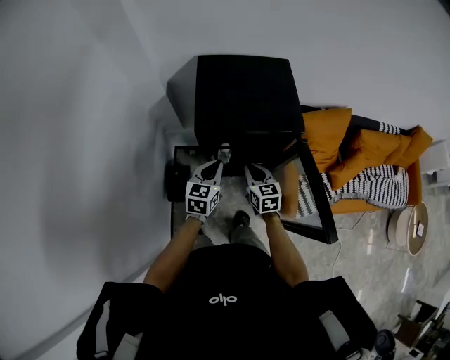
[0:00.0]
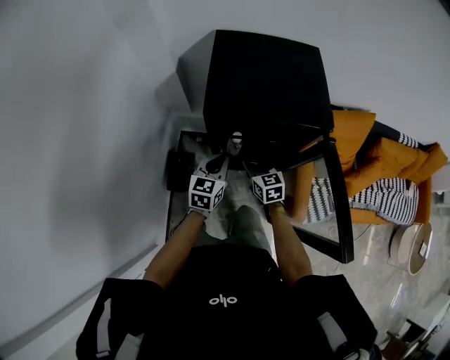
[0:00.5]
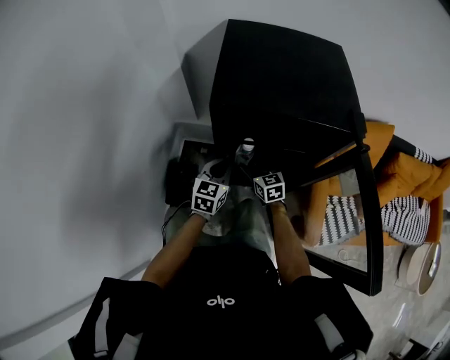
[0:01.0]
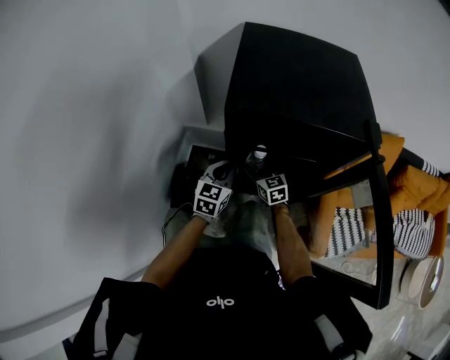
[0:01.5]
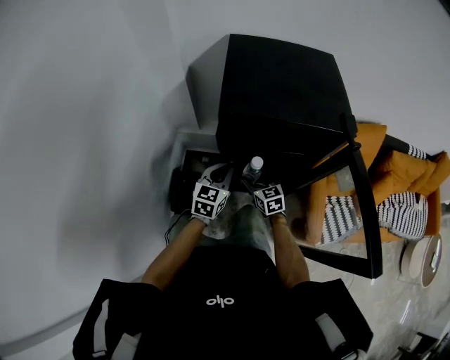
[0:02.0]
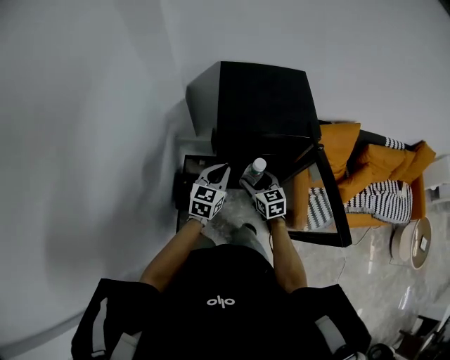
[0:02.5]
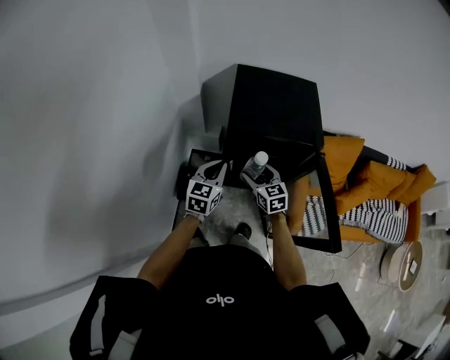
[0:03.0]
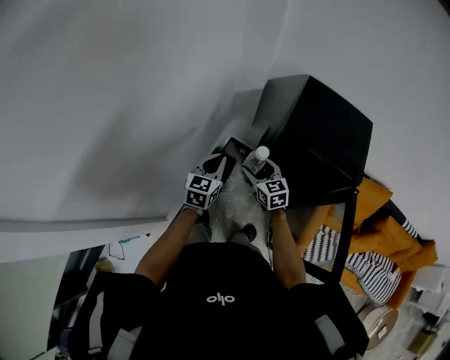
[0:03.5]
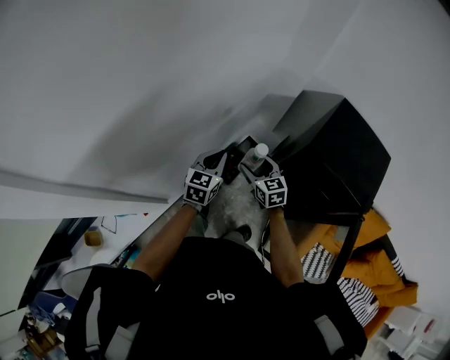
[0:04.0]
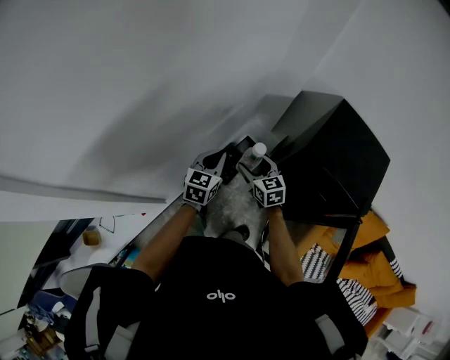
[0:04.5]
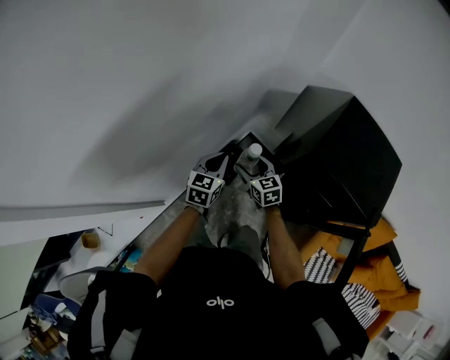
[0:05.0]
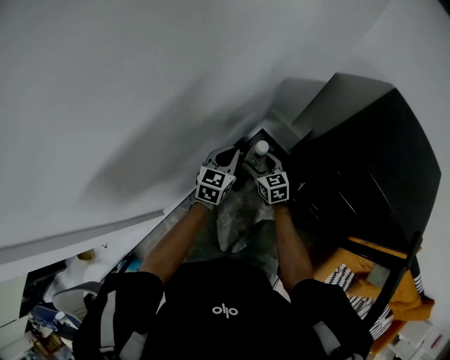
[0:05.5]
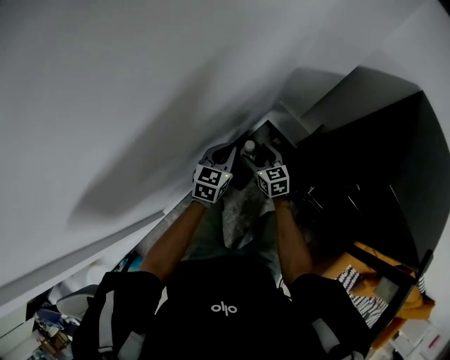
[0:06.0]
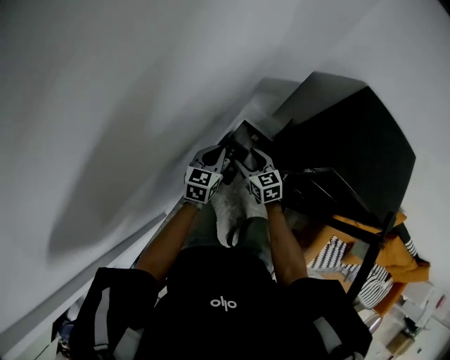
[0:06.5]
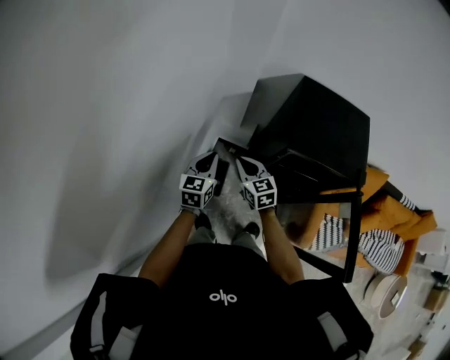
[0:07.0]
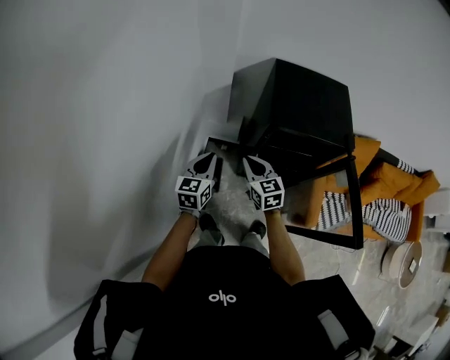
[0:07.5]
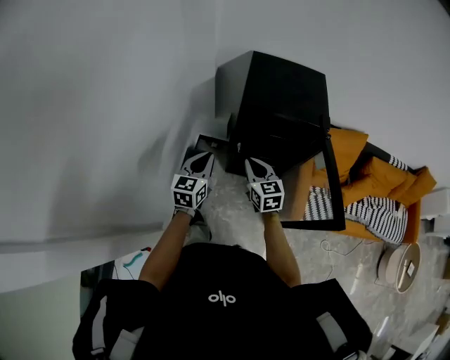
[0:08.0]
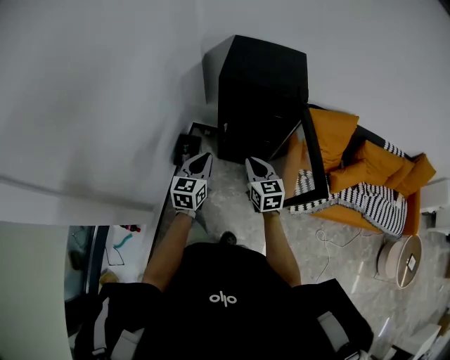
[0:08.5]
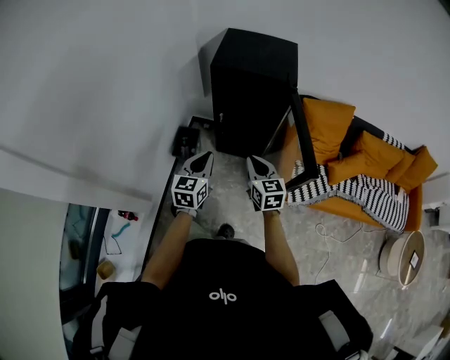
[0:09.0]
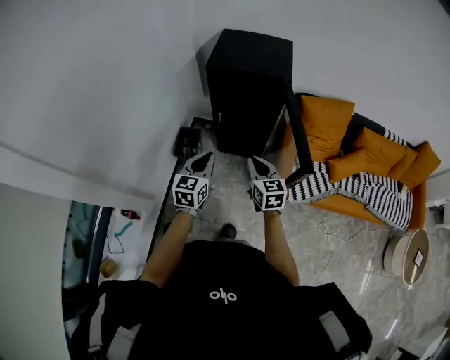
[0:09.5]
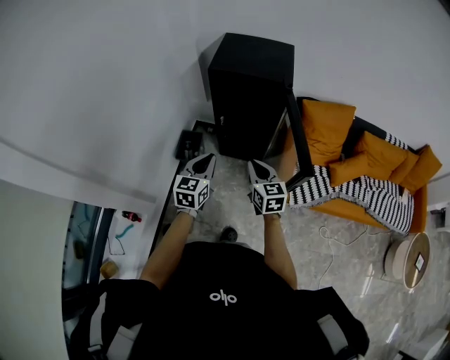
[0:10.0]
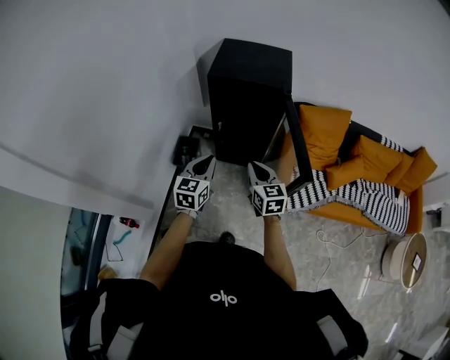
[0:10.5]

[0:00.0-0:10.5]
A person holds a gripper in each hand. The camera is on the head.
0:00.0 to 0:02.0: Both grippers travel together downward, approximately 20 cm. The right gripper opens up.
0:02.0 to 0:04.0: The right gripper changes place by roughly 35 cm, and turns by about 40 degrees. Meanwhile the left gripper shifts by roughly 35 cm, and swivels roughly 40 degrees.
0:04.0 to 0:06.5: The grippers both shift downward and forward by roughly 20 cm.
0:06.5 to 0:08.5: The right gripper ends up about 50 cm from where it was, rotates some 30 degrees, and closes, while the left gripper changes place by some 40 cm.
0:08.5 to 0:10.5: The left gripper heads to the right and backward, covering approximately 10 cm; the right gripper is displaced backward and to the right by some 10 cm.

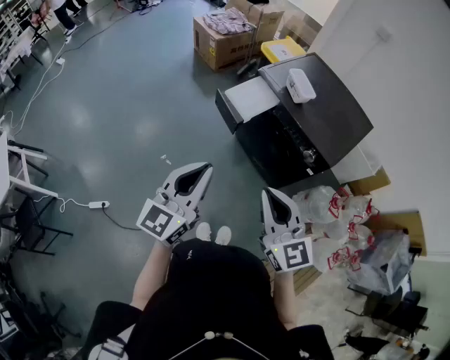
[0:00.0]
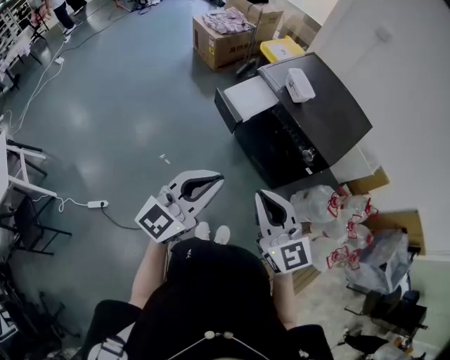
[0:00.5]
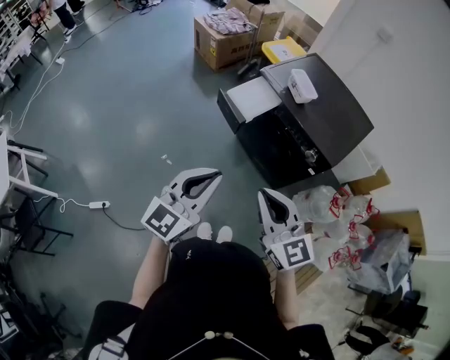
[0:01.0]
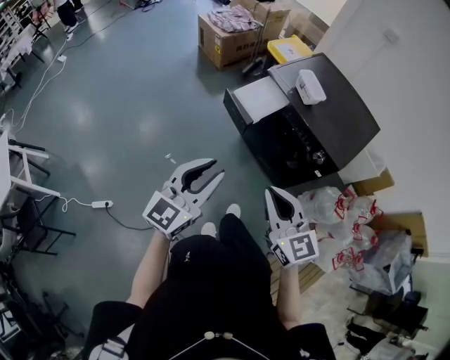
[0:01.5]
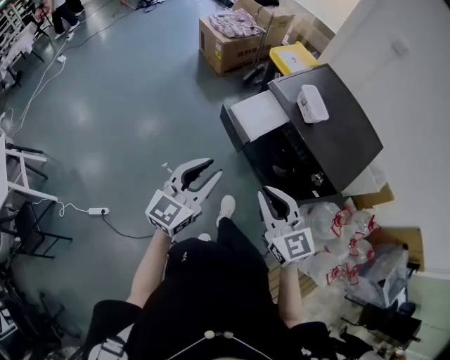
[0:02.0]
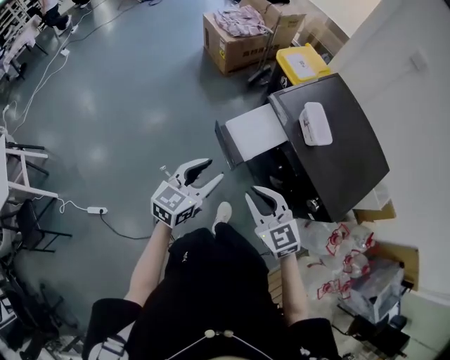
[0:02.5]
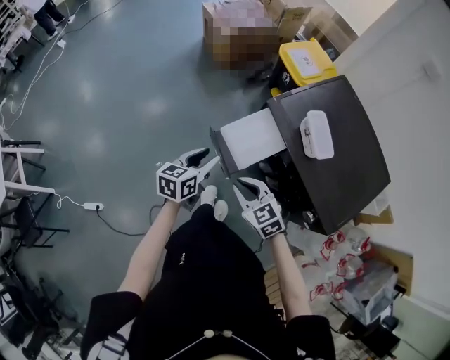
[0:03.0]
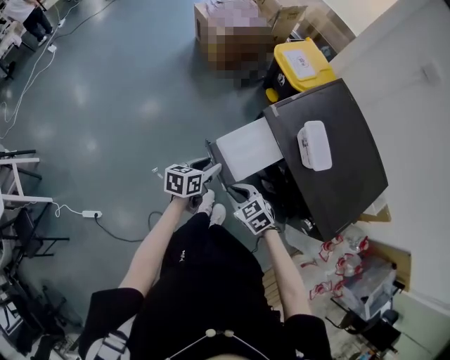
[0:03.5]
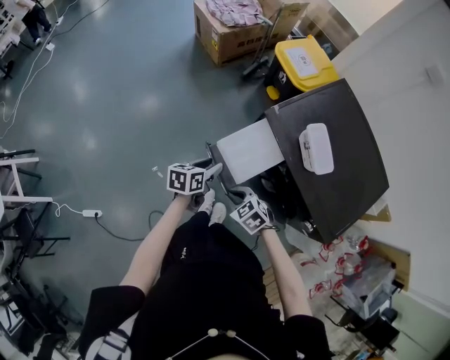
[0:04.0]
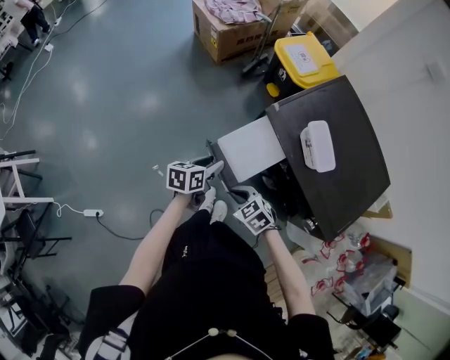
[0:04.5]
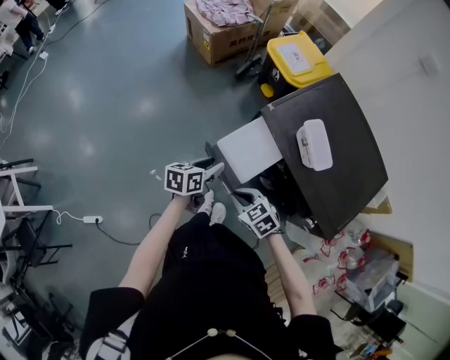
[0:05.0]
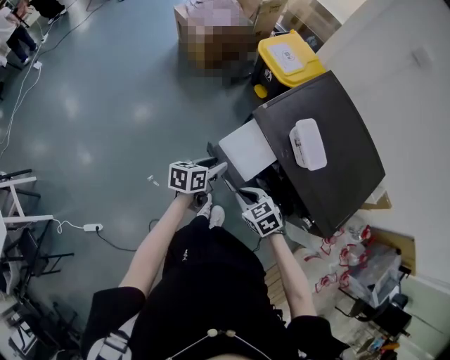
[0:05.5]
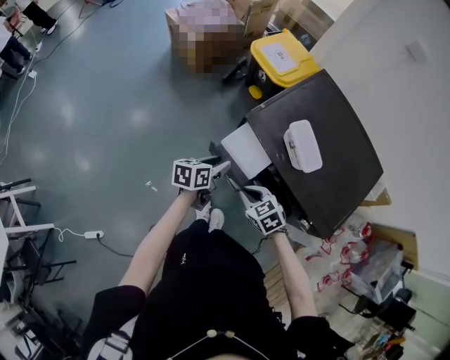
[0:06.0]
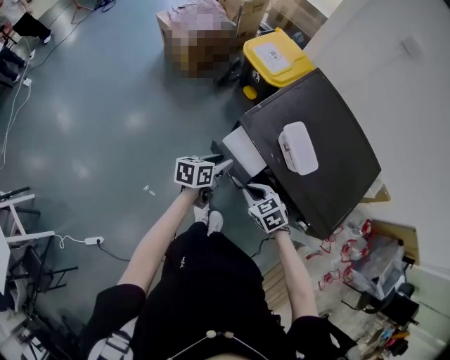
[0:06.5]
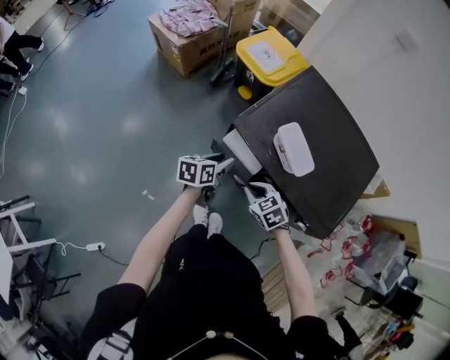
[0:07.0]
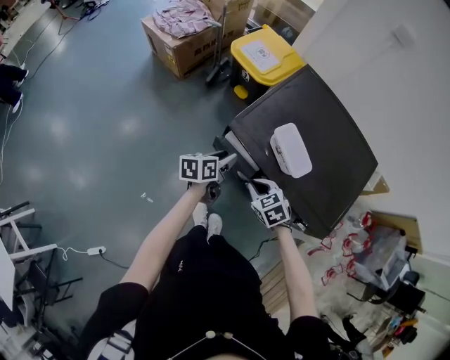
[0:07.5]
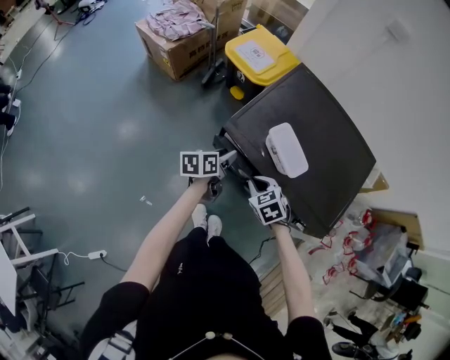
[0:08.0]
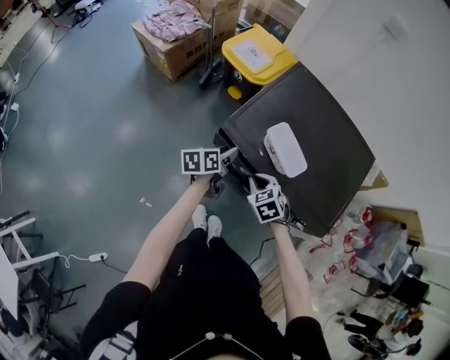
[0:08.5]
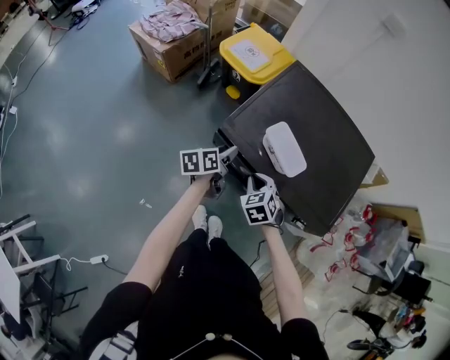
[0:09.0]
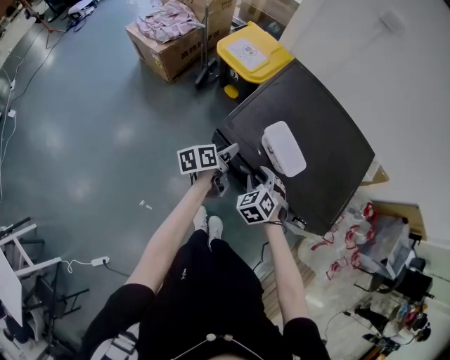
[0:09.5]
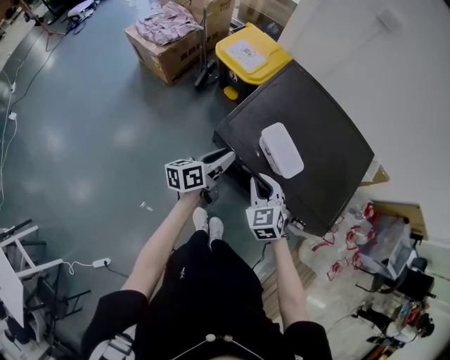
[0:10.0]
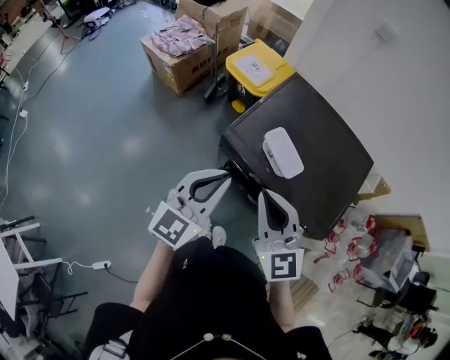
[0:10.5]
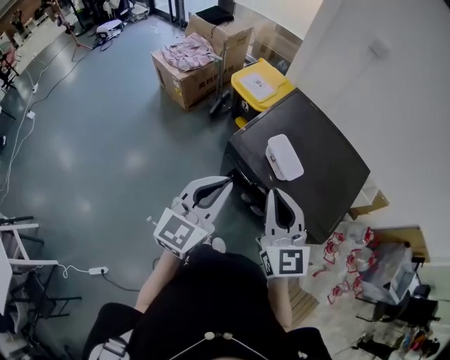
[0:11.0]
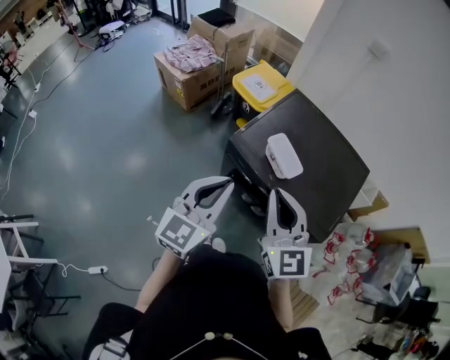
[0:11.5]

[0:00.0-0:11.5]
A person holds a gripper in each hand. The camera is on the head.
0:00.0 to 0:02.0: The two grippers go about 15 cm forward and downward. The left gripper opens.
0:02.0 to 0:04.0: Both grippers move downward and forward, roughly 35 cm. The right gripper tilts its fingers roughly 40 degrees downward; the left gripper tilts its fingers about 30 degrees downward.
0:04.0 to 0:06.0: Both grippers move to the right, some 10 cm.
0:06.0 to 0:07.5: The grippers both shift forward and to the right by about 10 cm.
0:07.5 to 0:09.5: The left gripper moves about 5 cm, while the right gripper travels forward by some 5 cm, changes its angle by some 30 degrees, and opens.
0:09.5 to 0:11.5: The right gripper heads upward, covering about 30 cm, points its fingers roughly 50 degrees further upward, and closes up, while the left gripper moves upward and backward, approximately 35 cm, rotates around the line of its fingers by about 60 degrees, clockwise from behind, and closes its fingers.

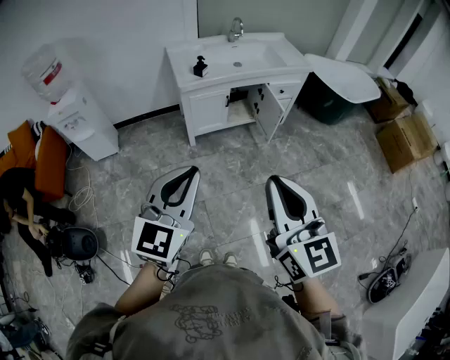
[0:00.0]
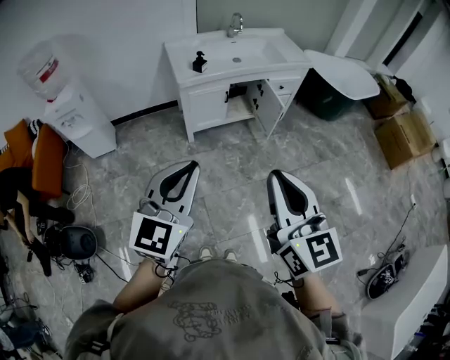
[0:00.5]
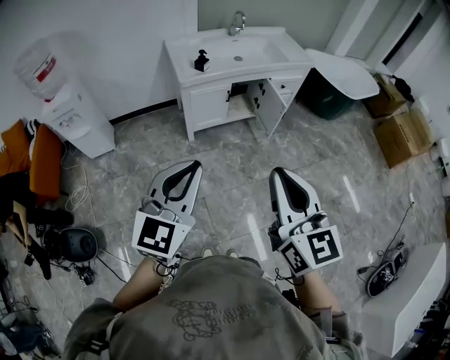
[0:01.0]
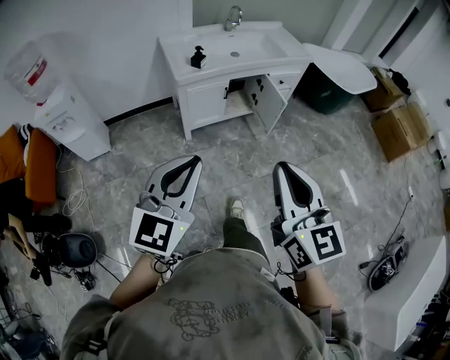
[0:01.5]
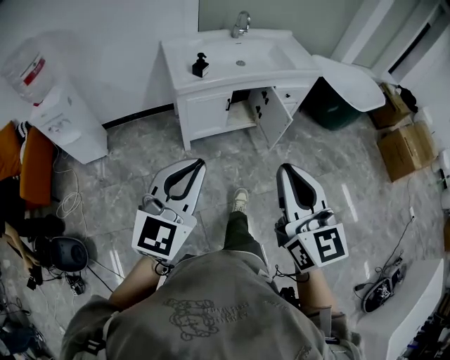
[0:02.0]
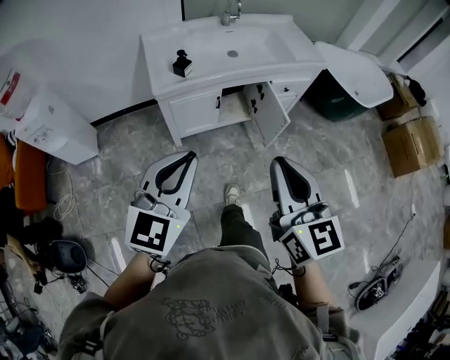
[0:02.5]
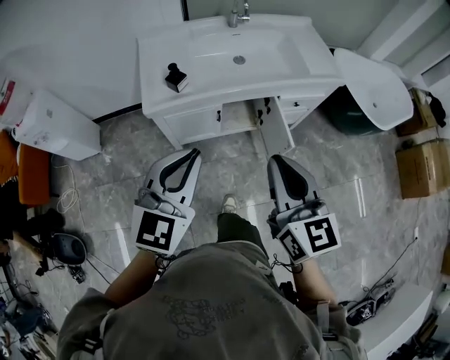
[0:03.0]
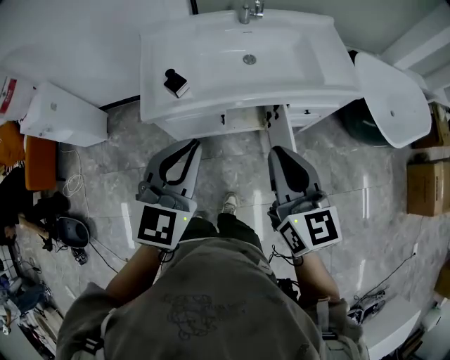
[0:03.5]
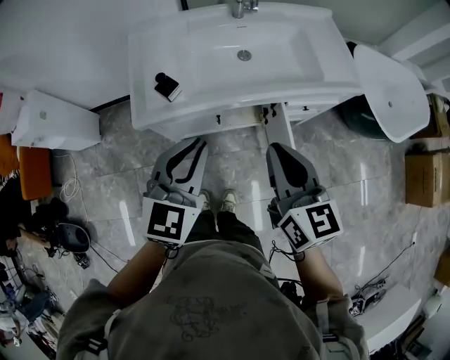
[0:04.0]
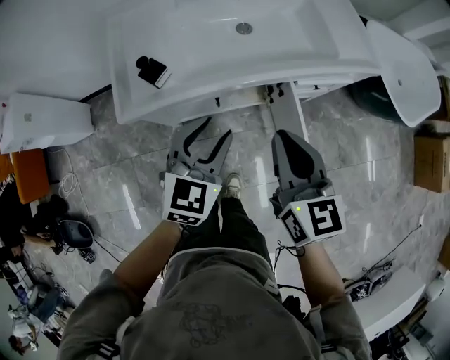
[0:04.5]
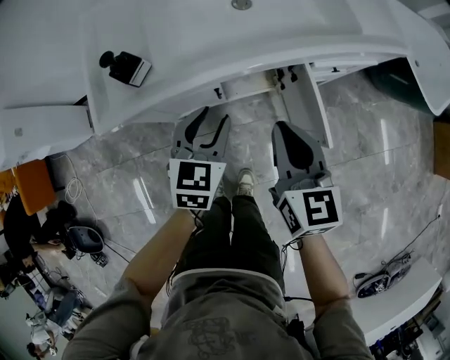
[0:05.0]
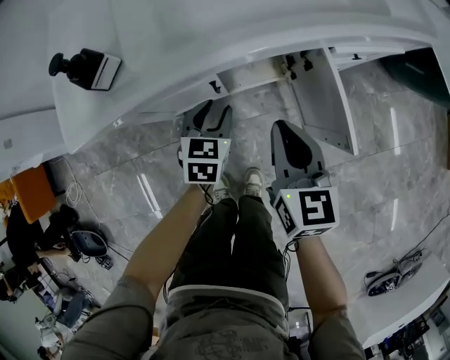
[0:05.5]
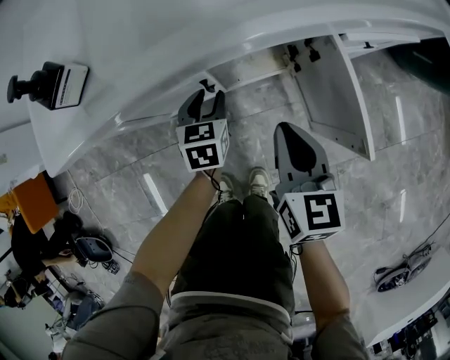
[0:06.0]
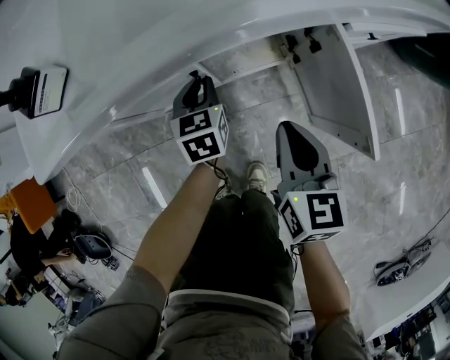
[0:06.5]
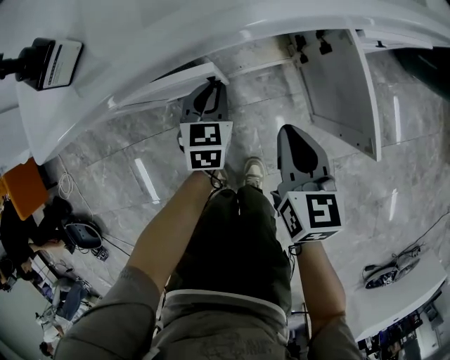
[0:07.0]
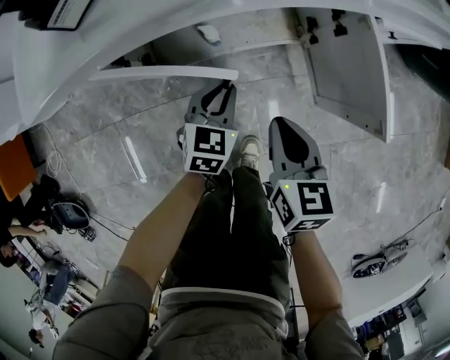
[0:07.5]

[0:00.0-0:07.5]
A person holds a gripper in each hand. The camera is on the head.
0:00.0 to 0:02.0: The grippers both shift forward by roughly 15 cm.
0:02.0 to 0:04.0: Both grippers are carried forward, some 50 cm. The right gripper swivels approximately 20 degrees.
0:04.0 to 0:05.5: The grippers both shift downward by some 40 cm. The left gripper rotates about 30 degrees, and opens.
0:05.5 to 0:07.5: Both grippers travel together downward and backward, roughly 10 cm. The left gripper closes up.
